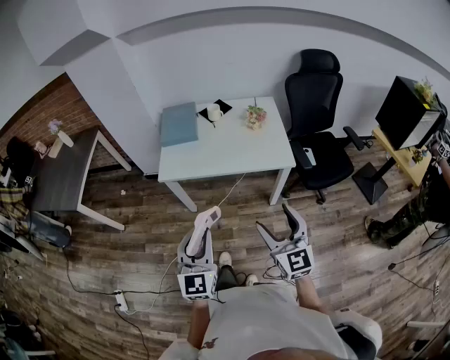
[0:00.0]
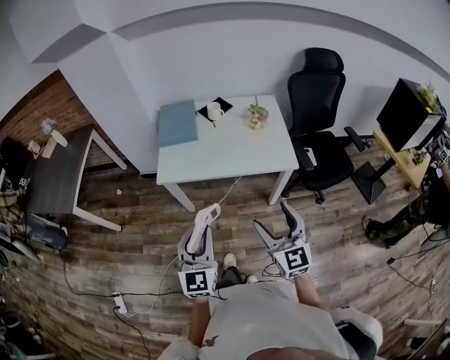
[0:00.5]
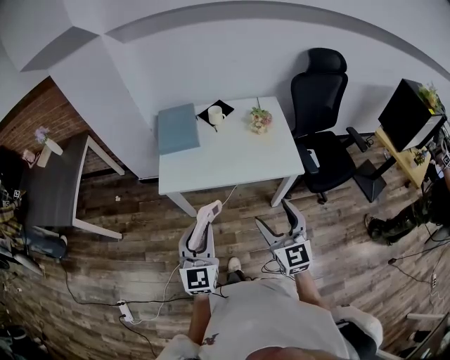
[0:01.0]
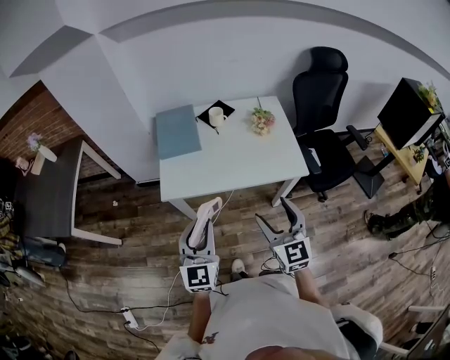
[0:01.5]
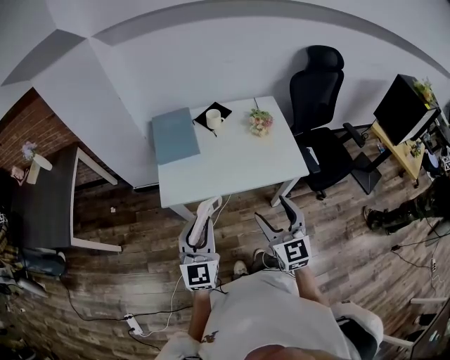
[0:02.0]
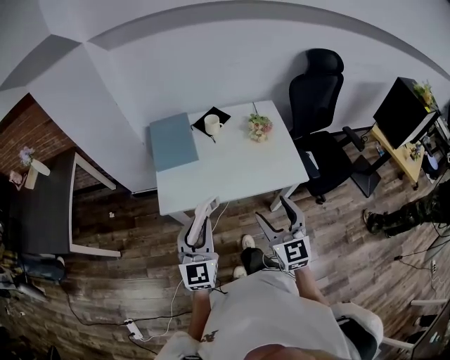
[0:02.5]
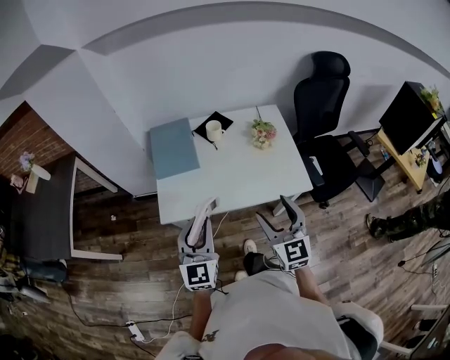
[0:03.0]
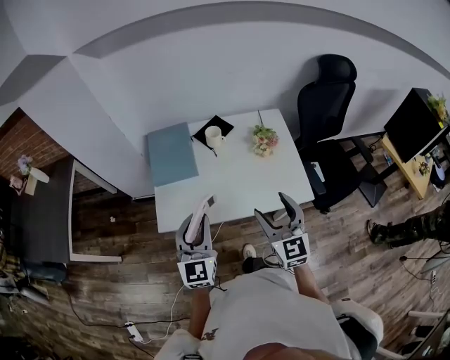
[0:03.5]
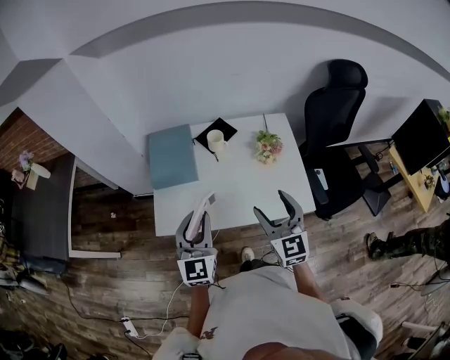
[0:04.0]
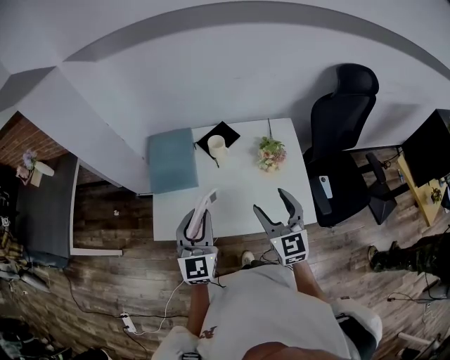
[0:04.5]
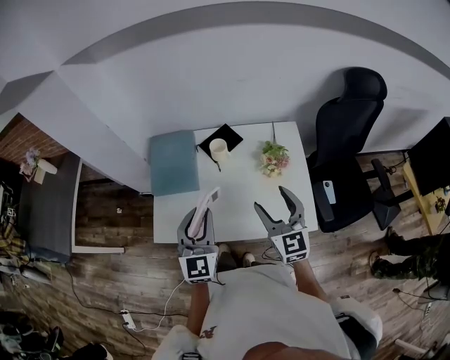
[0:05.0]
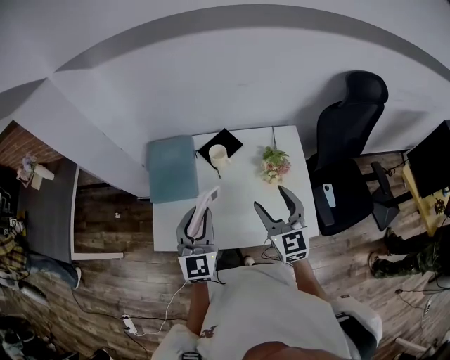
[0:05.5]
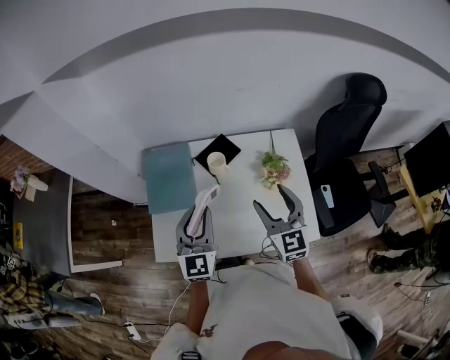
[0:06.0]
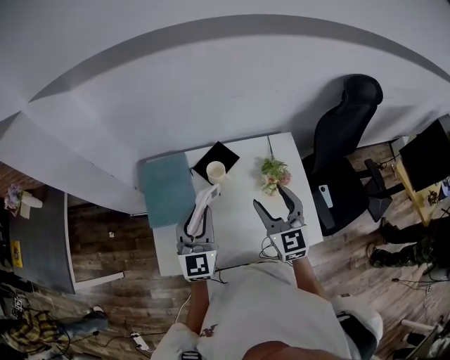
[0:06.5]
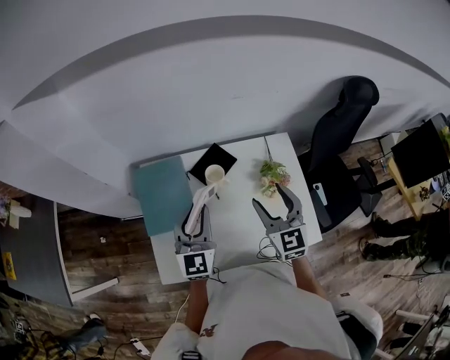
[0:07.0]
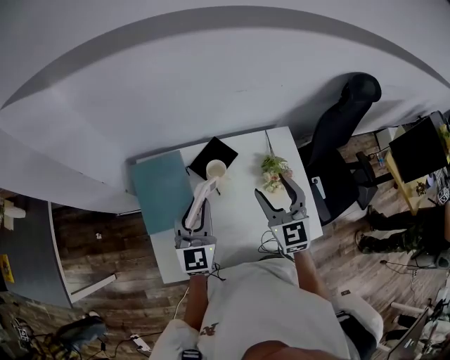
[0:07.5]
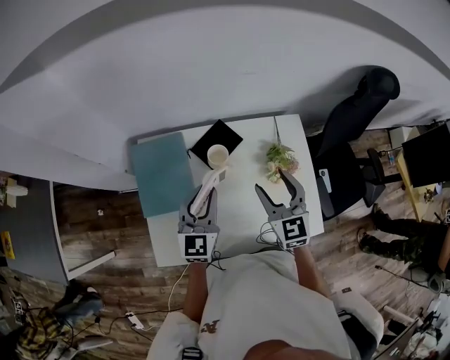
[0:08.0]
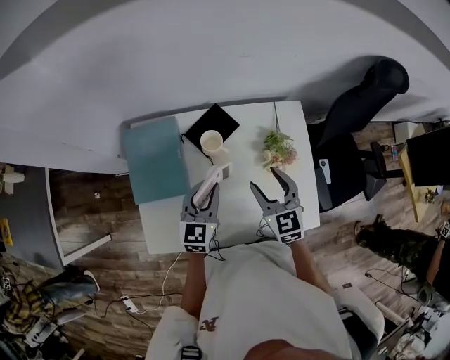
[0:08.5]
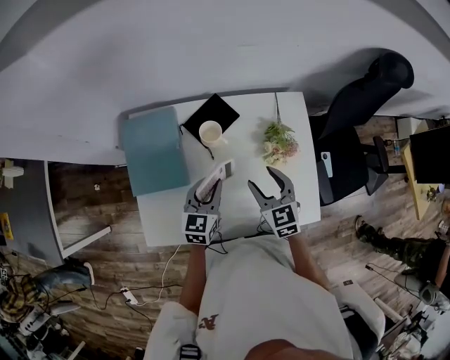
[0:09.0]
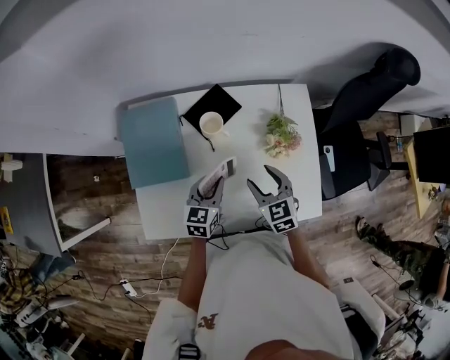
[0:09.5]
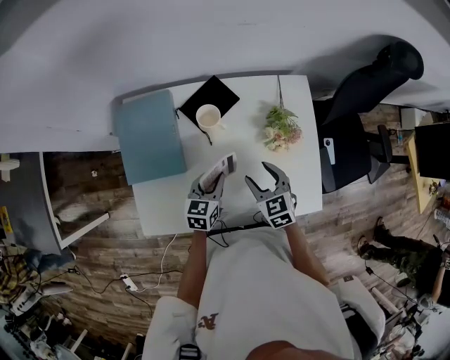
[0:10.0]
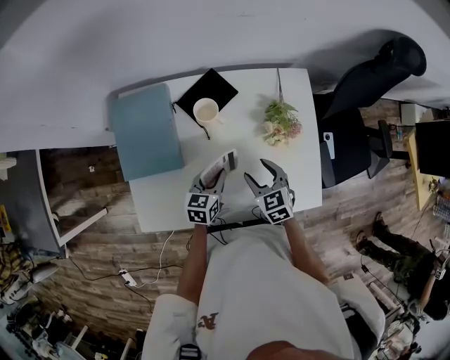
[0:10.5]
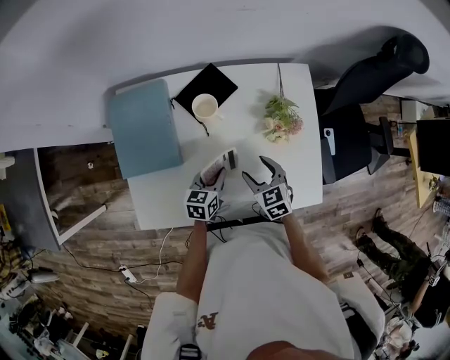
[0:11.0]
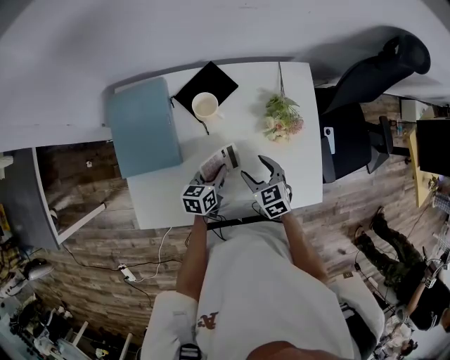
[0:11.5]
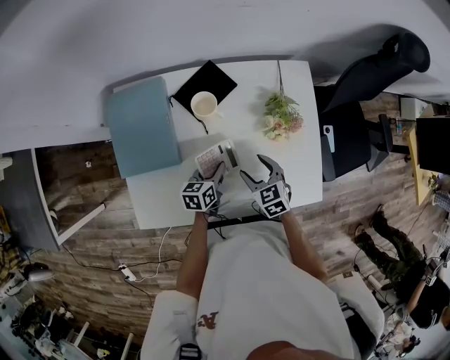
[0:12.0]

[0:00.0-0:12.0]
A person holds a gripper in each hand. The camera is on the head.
0:00.0 to 0:02.0: The two grippers go roughly 20 cm forward and to the left.
0:02.0 to 0:04.0: The two grippers go approximately 20 cm forward.
0:04.0 to 0:06.0: Both grippers move forward, approximately 15 cm.
0:06.0 to 0:08.0: The right gripper shifts some 10 cm forward, while the left gripper heads forward and downward, covering some 15 cm.
0:08.0 to 0:10.0: The two grippers go approximately 20 cm downward. The left gripper swivels some 30 degrees; the right gripper rotates about 30 degrees.
0:10.0 to 0:12.0: Both grippers travel together downward, about 5 cm. The left gripper turns by approximately 20 degrees.

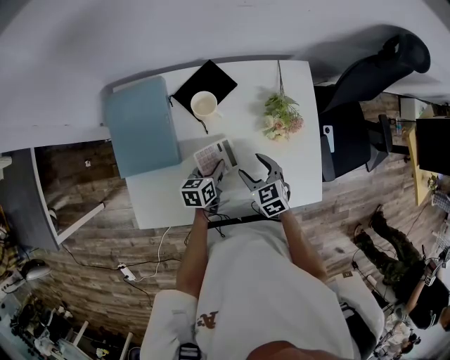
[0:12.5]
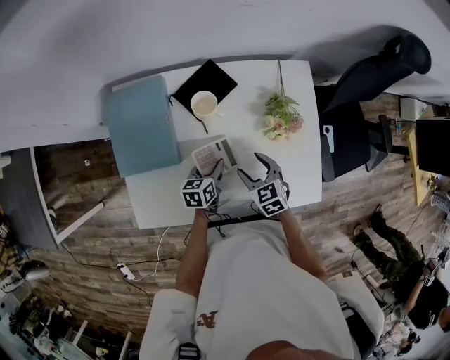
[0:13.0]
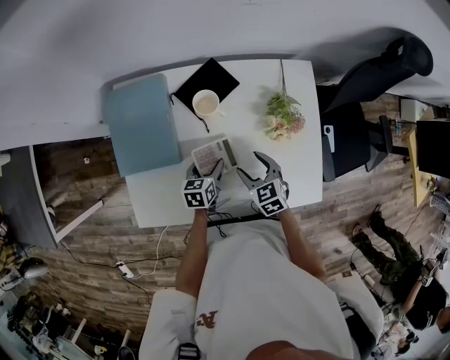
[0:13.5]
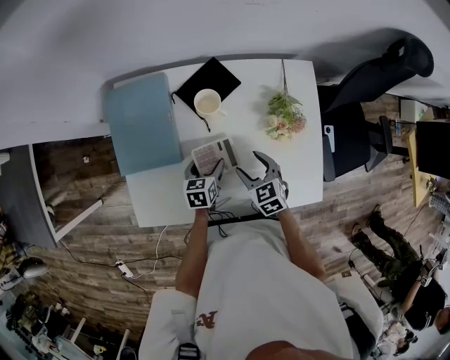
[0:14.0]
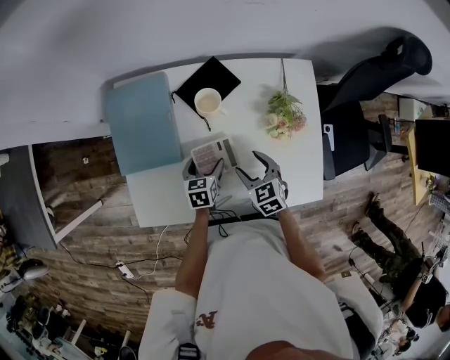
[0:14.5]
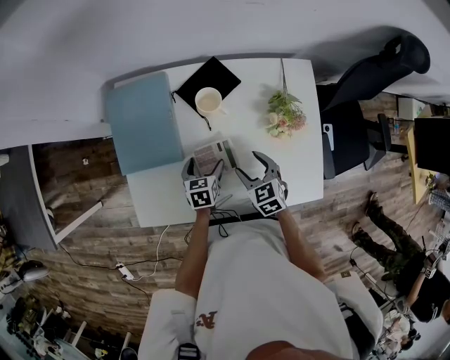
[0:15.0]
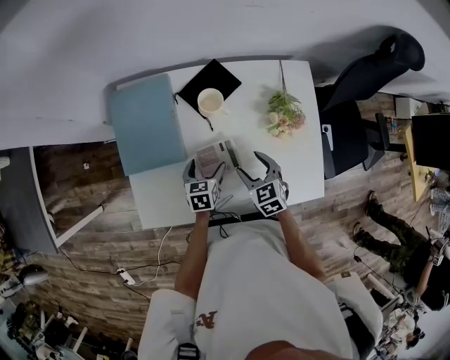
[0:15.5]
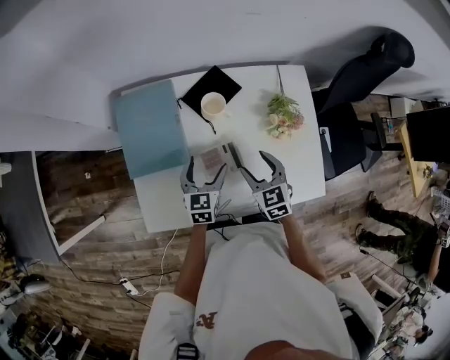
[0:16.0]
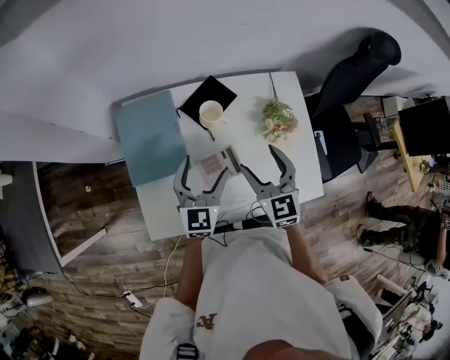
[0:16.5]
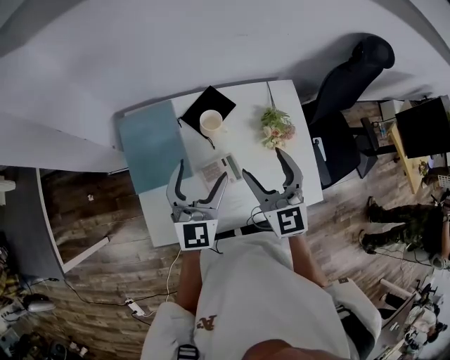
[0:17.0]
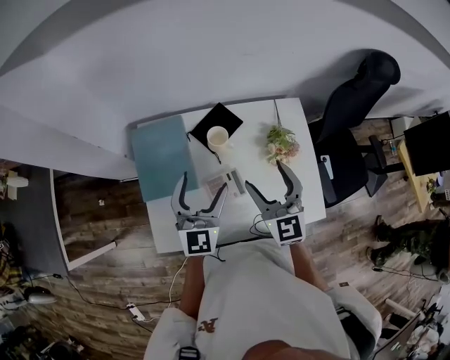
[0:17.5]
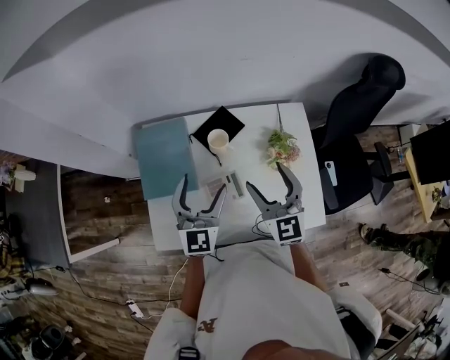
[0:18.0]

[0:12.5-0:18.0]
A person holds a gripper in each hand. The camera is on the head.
0:12.5 to 0:14.5: The left gripper opens.
0:14.5 to 0:16.0: The left gripper shifts some 10 cm upward, and swivels about 20 degrees; the right gripper moves upward, some 5 cm.
0:16.0 to 0:18.0: The grippers both shift upward by about 20 cm. The left gripper turns by some 30 degrees; the right gripper changes its angle by approximately 30 degrees.

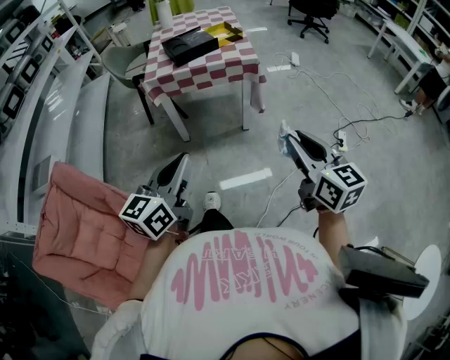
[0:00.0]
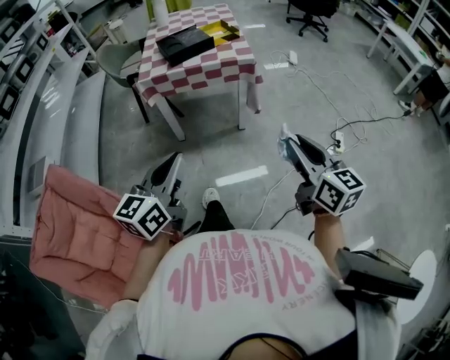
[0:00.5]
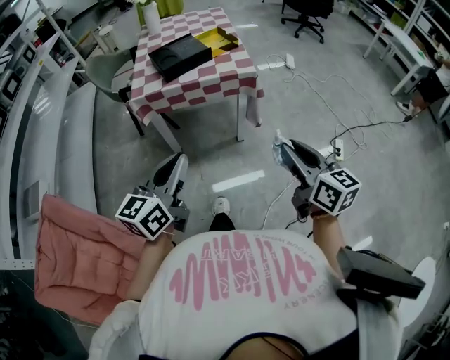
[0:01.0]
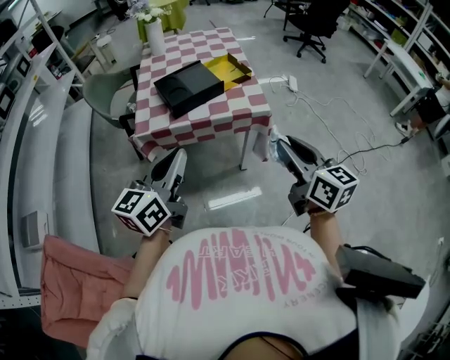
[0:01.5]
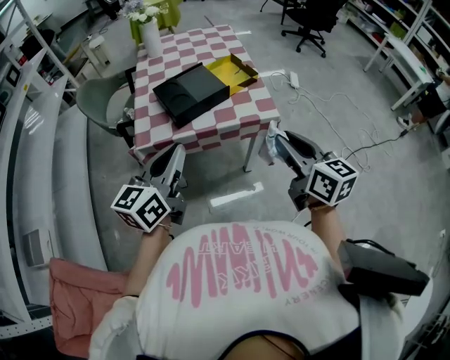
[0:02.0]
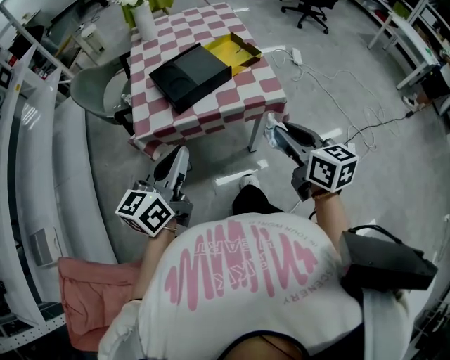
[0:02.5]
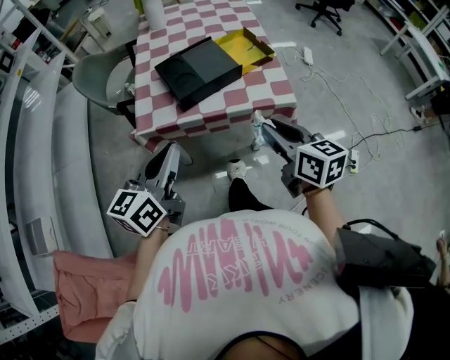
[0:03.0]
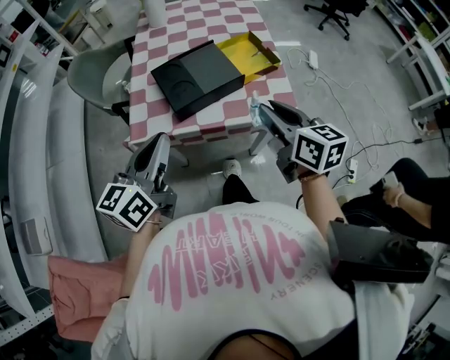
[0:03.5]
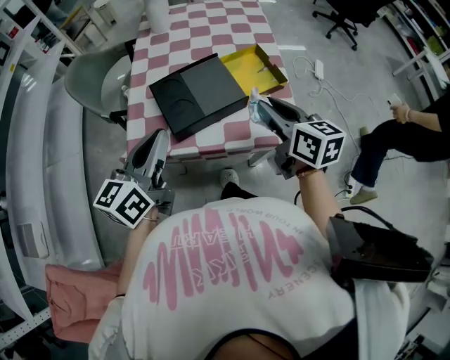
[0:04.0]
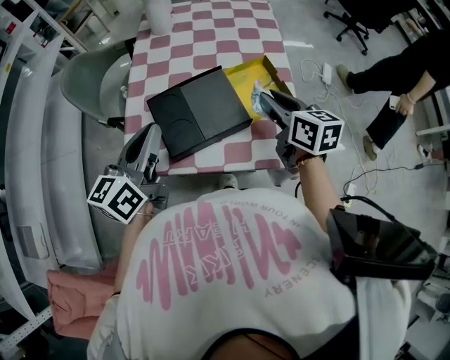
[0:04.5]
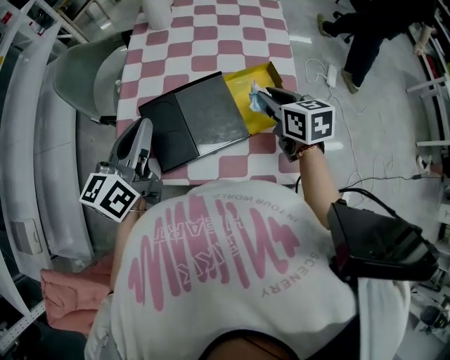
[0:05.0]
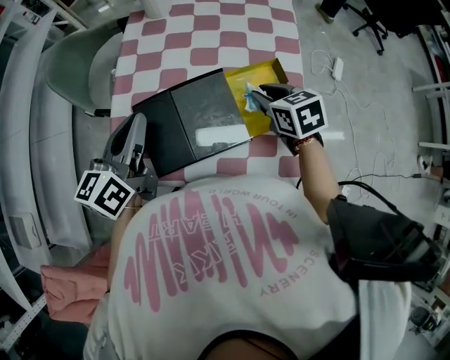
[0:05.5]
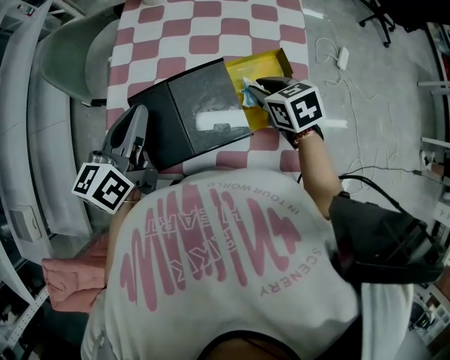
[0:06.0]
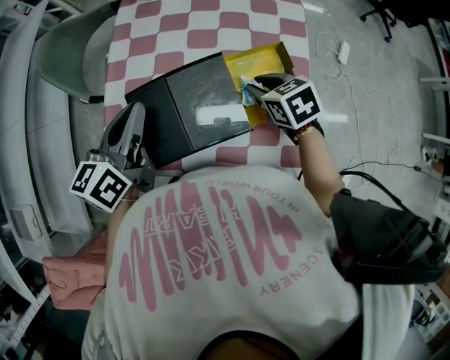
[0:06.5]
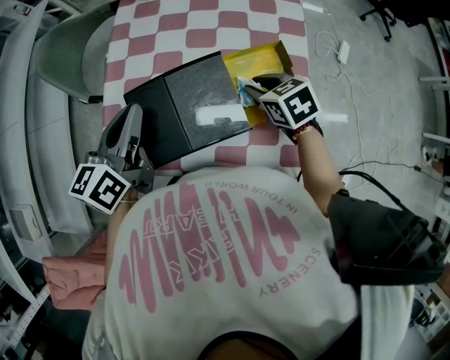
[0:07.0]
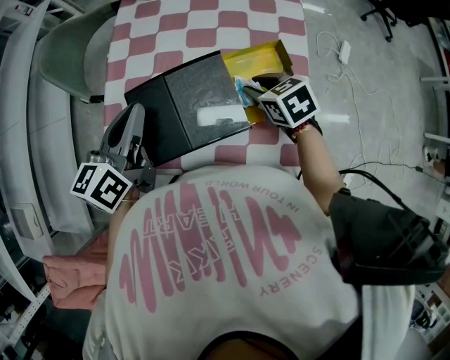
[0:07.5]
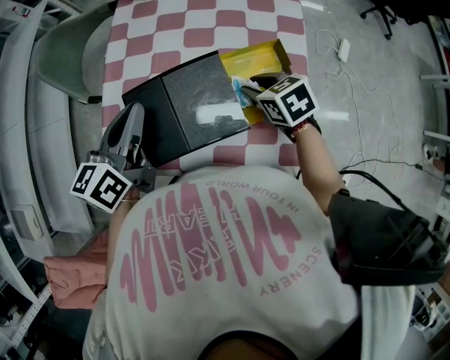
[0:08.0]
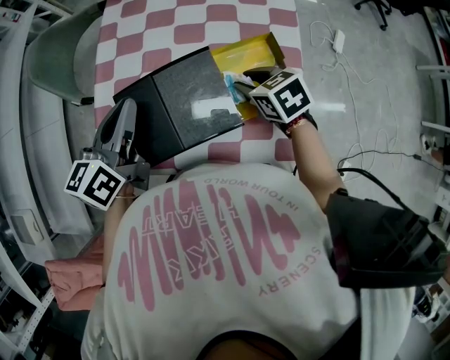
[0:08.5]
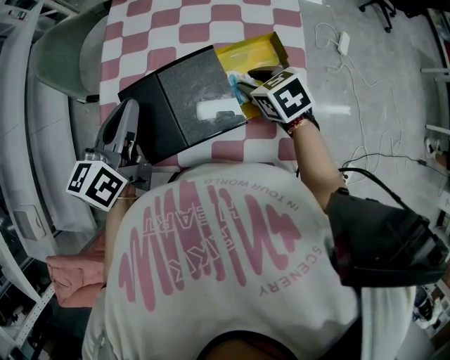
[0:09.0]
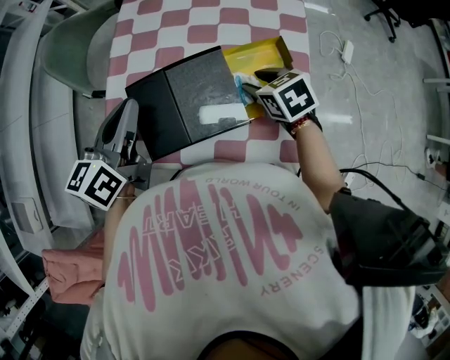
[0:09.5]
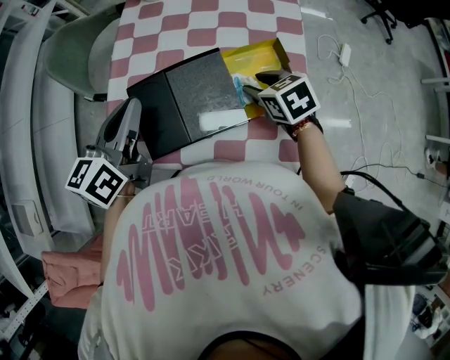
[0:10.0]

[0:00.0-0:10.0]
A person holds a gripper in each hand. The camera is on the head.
0:00.0 to 0:02.0: The pair of grippers is taken forward, approximately 40 cm.
0:02.0 to 0:04.0: The grippers both shift forward by roughly 25 cm.
0:04.0 to 0:06.0: The right gripper is displaced forward and downward by roughly 25 cm, and tilts its fingers roughly 30 degrees downward. Meanwhile the left gripper moves forward, about 20 cm.
0:06.0 to 0:10.0: The grippers make only small movements.
